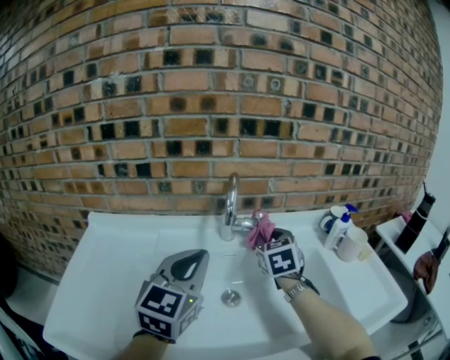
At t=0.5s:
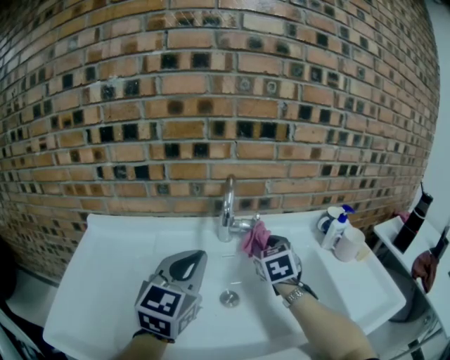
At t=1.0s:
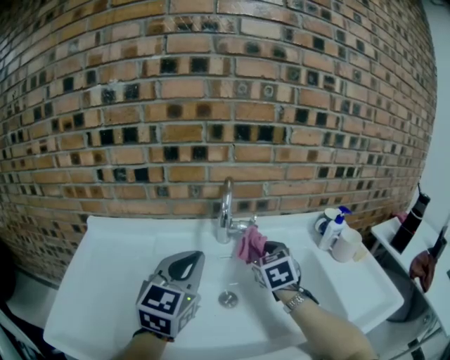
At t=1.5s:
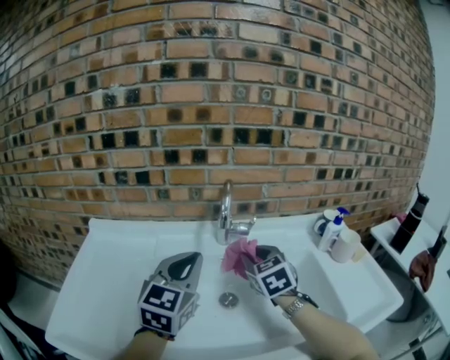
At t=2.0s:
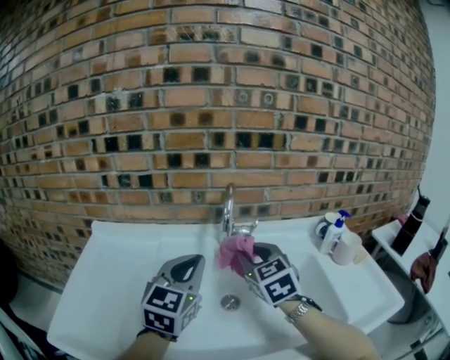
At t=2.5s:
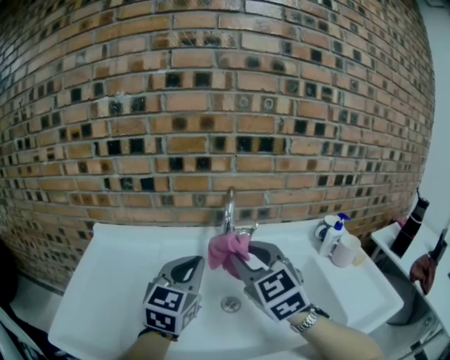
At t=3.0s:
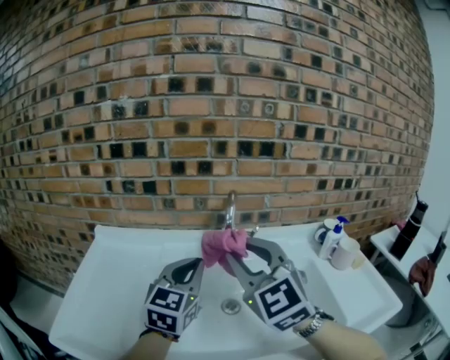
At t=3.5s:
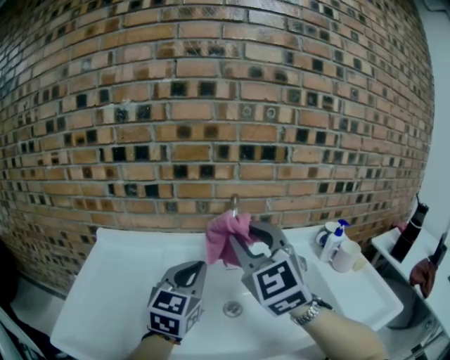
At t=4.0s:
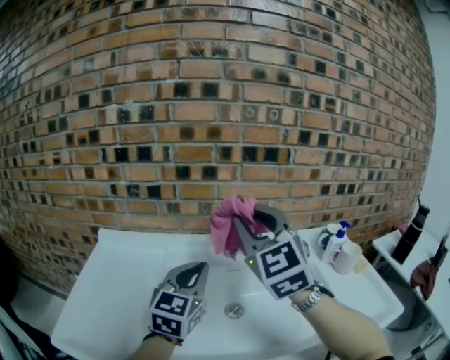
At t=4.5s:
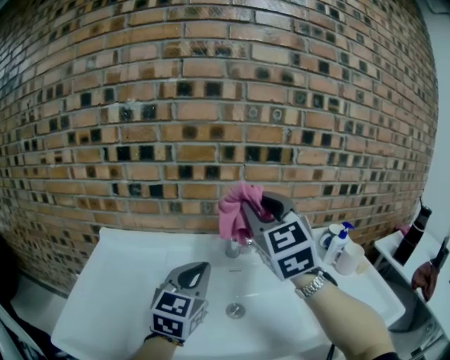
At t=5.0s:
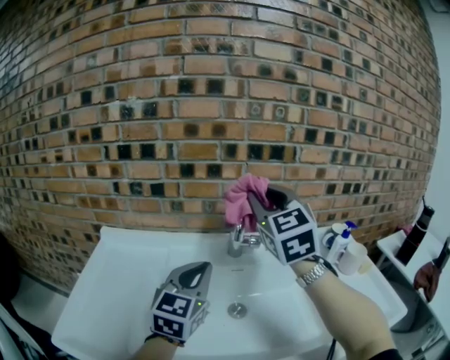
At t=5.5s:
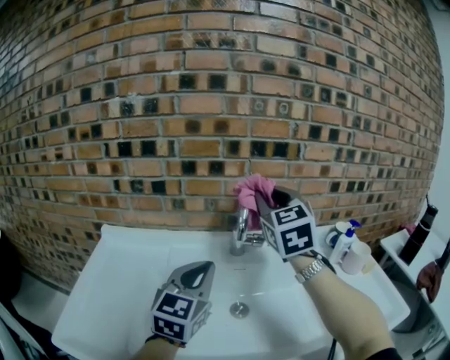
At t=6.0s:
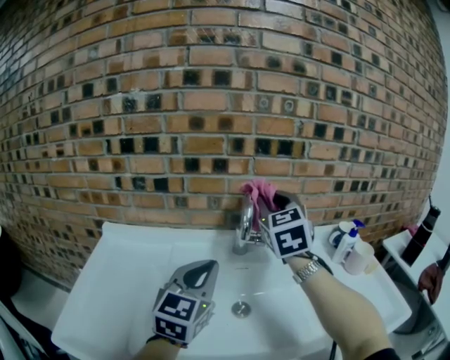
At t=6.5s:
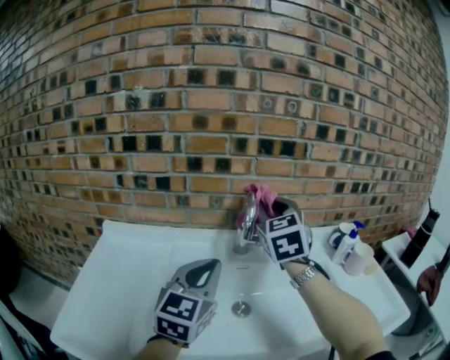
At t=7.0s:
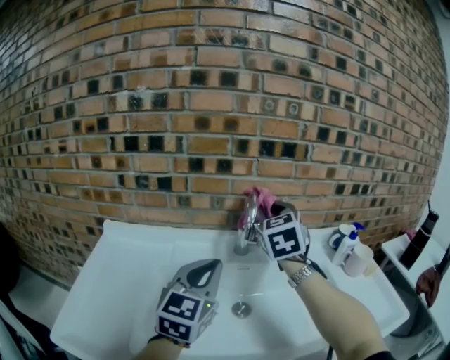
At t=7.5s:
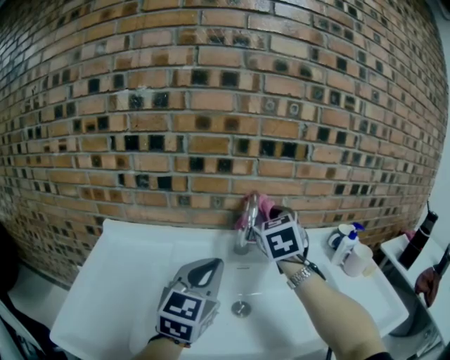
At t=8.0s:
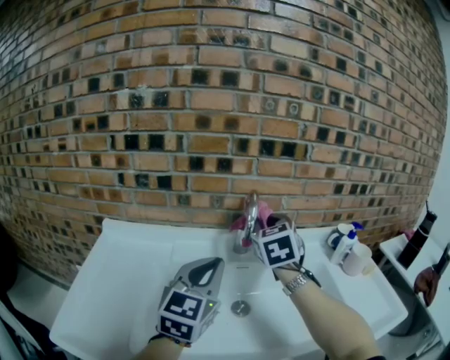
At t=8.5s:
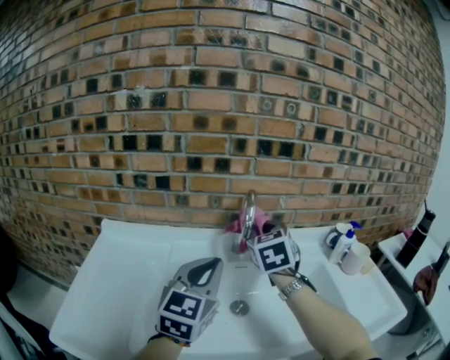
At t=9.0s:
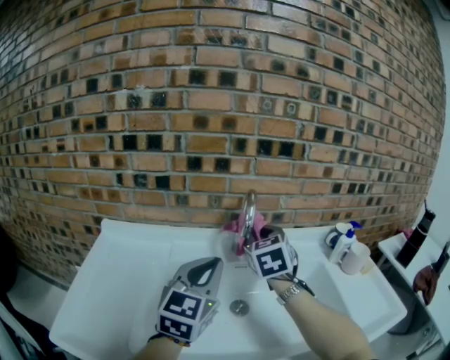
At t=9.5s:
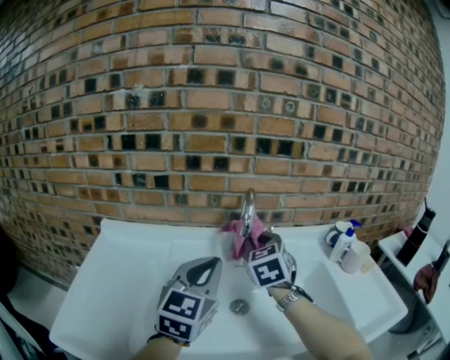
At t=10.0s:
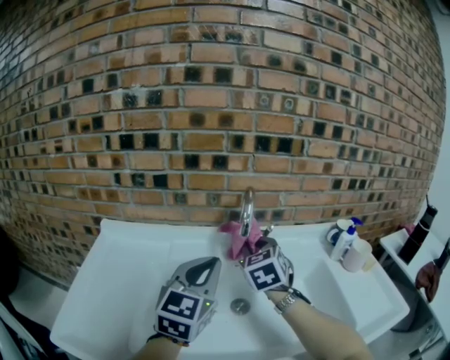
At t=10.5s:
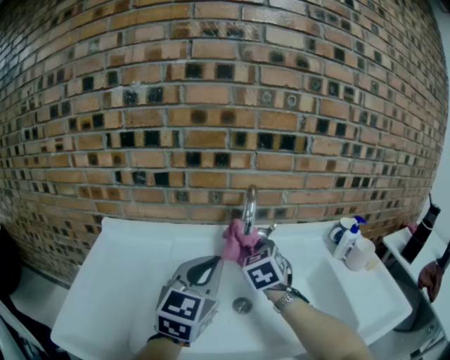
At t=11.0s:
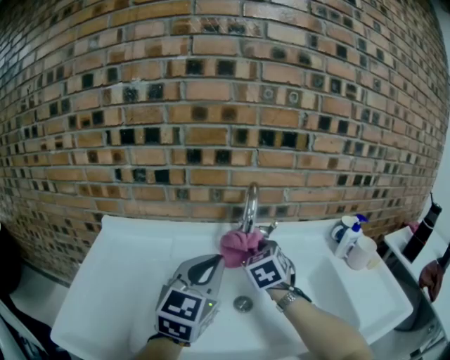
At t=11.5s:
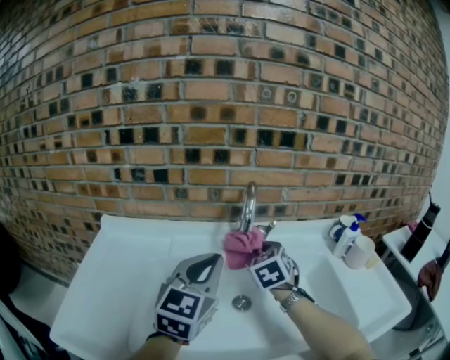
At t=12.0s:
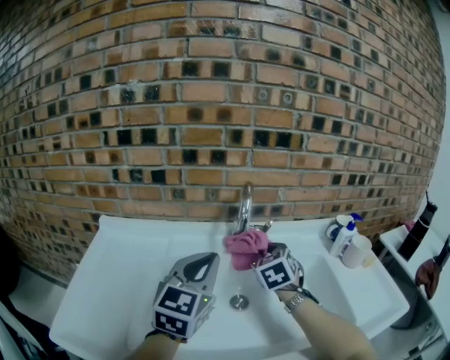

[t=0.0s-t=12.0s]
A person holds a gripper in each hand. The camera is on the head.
t=0.0s to t=2.0s: The right gripper goes some 10 cm backward and to the left.
t=2.0s to t=4.0s: The right gripper moves upward, approximately 15 cm, and changes its angle by about 30 degrees.
t=4.0s to t=6.0s: The right gripper shifts about 10 cm forward.
t=6.0s to t=8.0s: The right gripper travels downward by approximately 5 cm.
t=8.0s to t=10.0s: The right gripper is displaced downward by about 10 cm.
t=10.0s to t=12.0s: The right gripper ends up roughly 5 cm from where it was.

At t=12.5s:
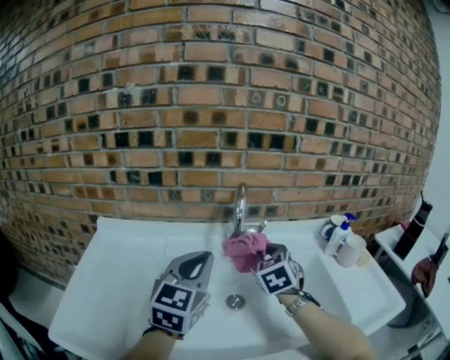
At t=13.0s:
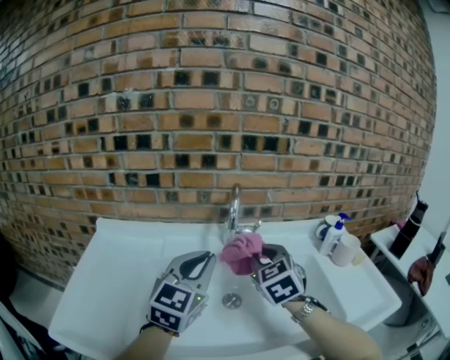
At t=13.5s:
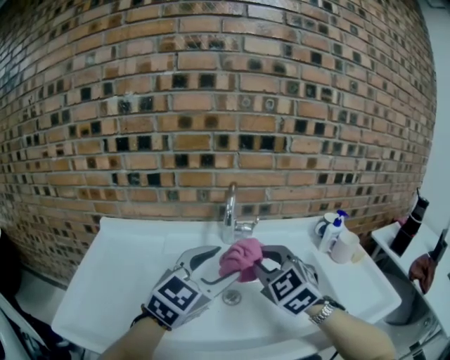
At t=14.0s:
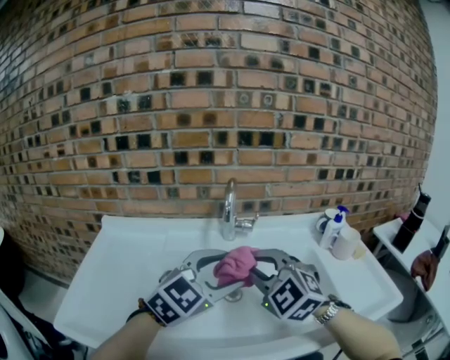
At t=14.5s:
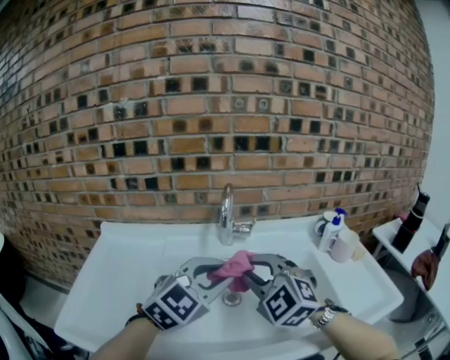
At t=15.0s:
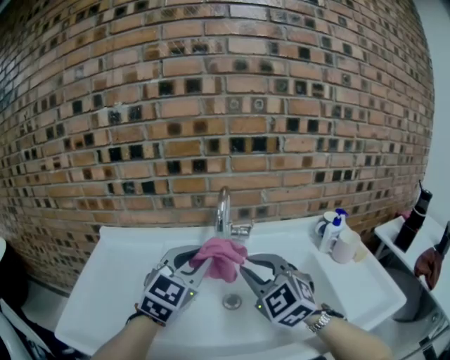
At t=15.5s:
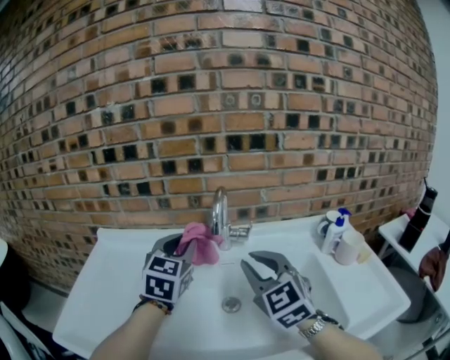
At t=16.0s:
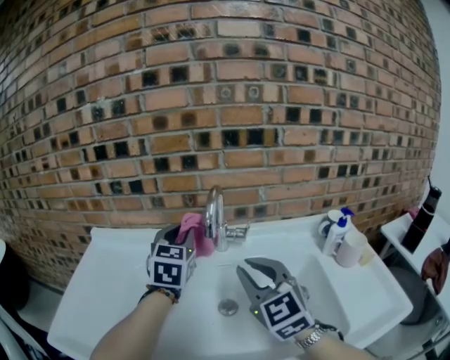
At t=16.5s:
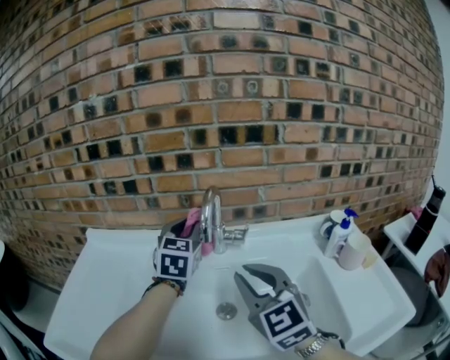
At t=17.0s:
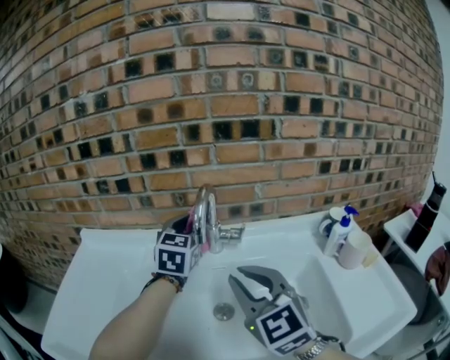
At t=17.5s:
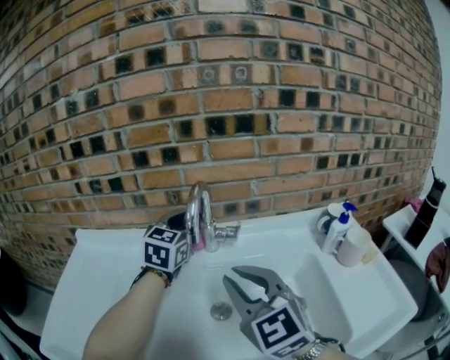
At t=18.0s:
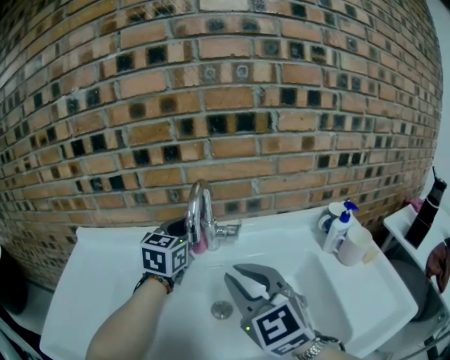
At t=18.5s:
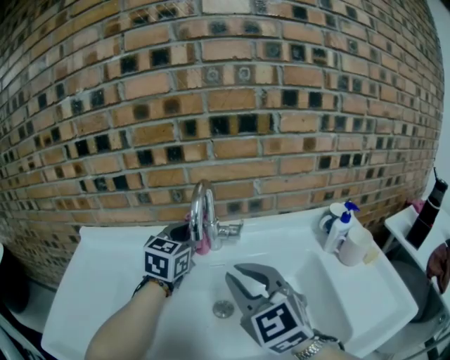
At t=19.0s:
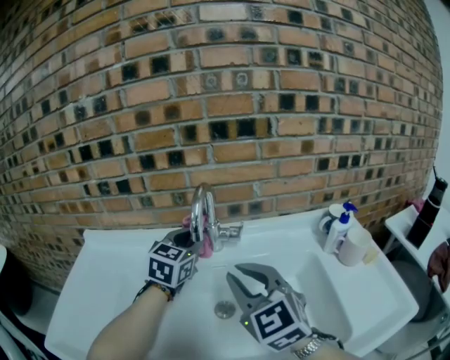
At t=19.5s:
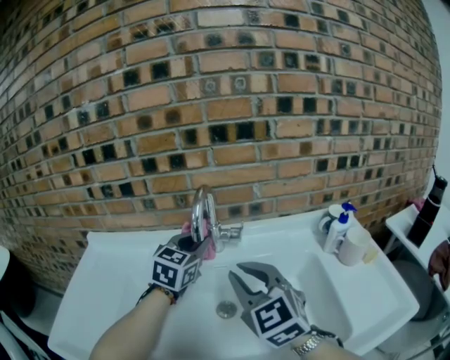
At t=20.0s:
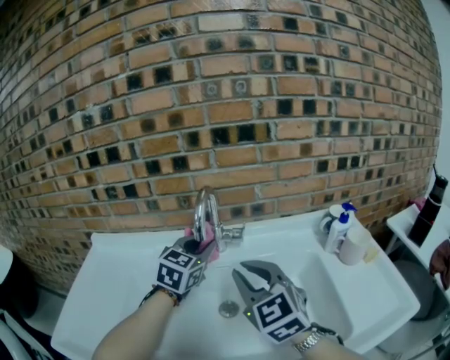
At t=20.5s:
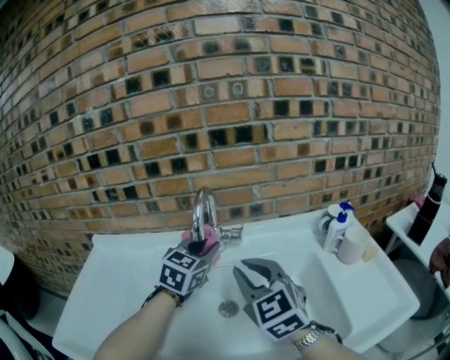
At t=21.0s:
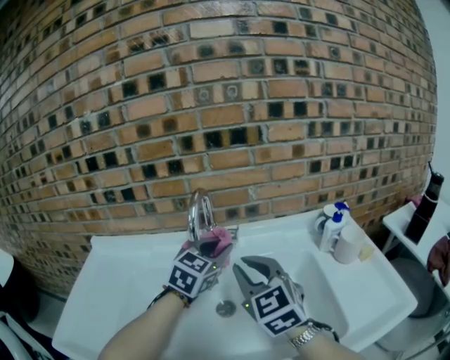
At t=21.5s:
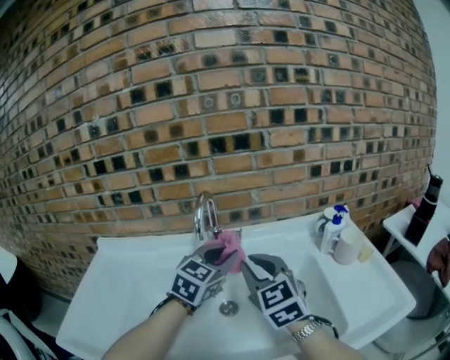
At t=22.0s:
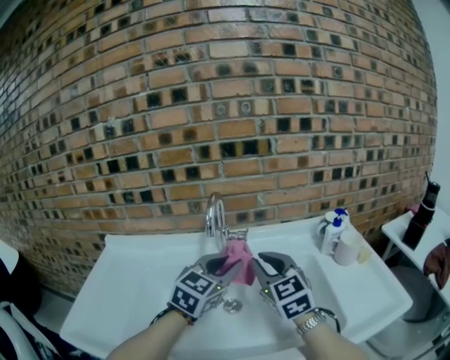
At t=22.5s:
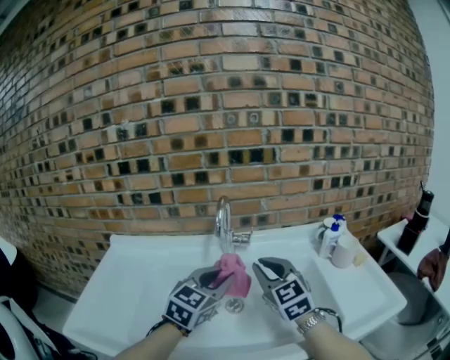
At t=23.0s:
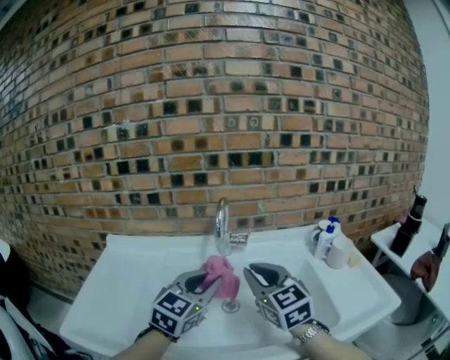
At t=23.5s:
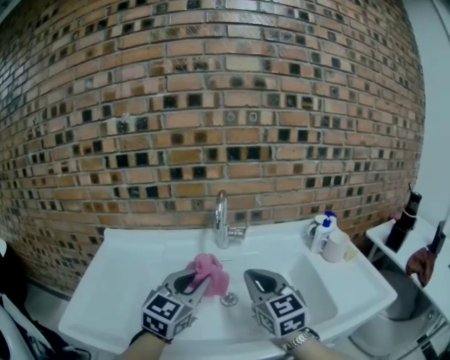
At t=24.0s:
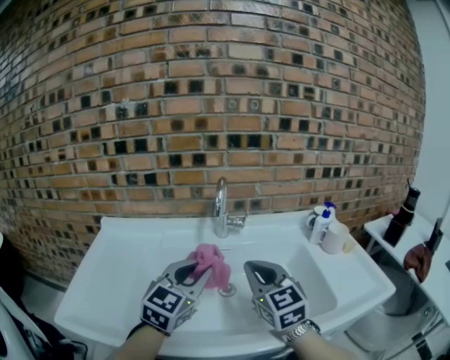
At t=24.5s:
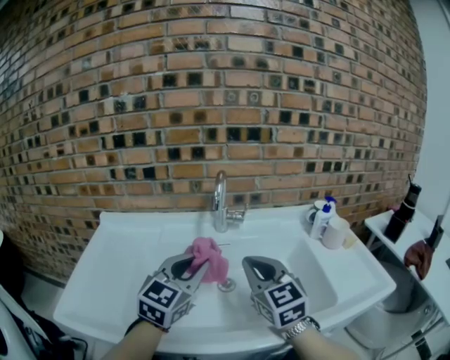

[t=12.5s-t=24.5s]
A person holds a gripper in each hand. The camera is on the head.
t=12.5s to t=14.5s: The left gripper goes roughly 10 cm to the right and backward, turns by roughly 30 degrees, and opens. The right gripper moves backward, roughly 15 cm, and changes its angle by approximately 40 degrees.
t=14.5s to t=16.5s: The right gripper moves approximately 5 cm, and rotates some 30 degrees. Meanwhile the left gripper shifts about 25 cm forward, and rotates roughly 40 degrees.
t=16.5s to t=18.5s: The grippers stay close to where they were, moving slightly.
t=18.5s to t=20.5s: The left gripper shifts by roughly 5 cm.
t=20.5s to t=22.5s: The left gripper shifts some 15 cm backward.
t=22.5s to t=24.5s: The right gripper is displaced backward by approximately 5 cm, while the left gripper travels backward and to the left by some 10 cm.

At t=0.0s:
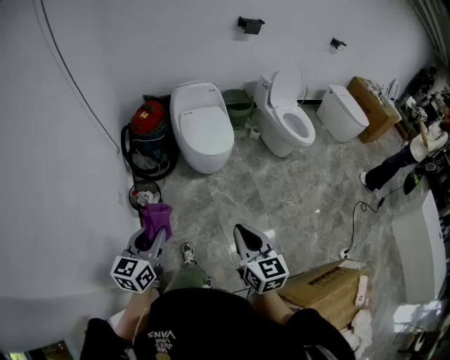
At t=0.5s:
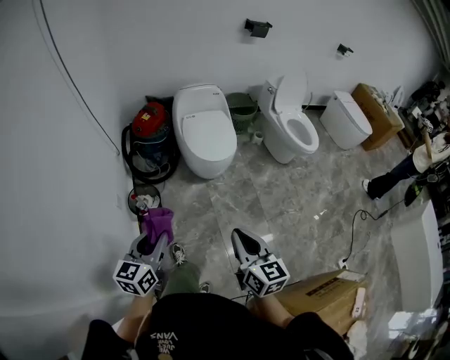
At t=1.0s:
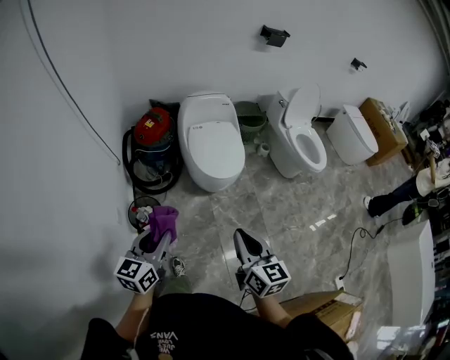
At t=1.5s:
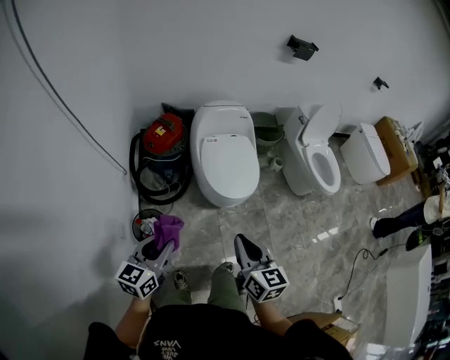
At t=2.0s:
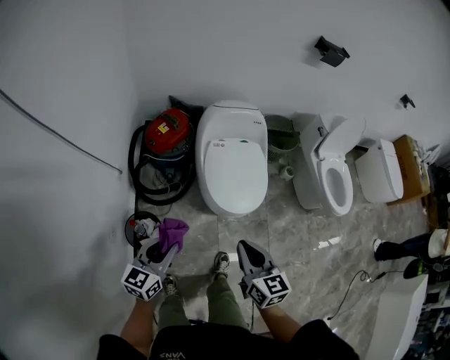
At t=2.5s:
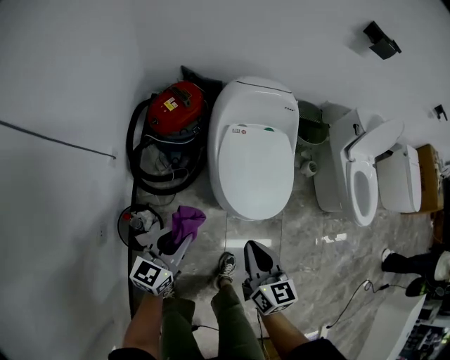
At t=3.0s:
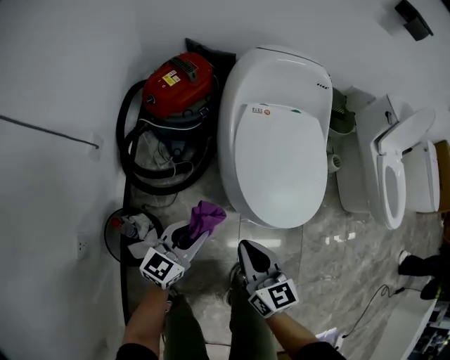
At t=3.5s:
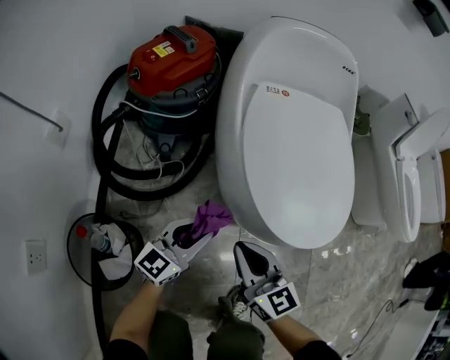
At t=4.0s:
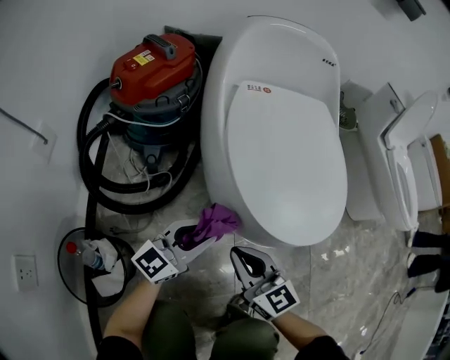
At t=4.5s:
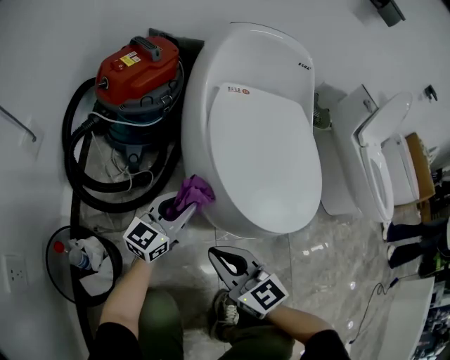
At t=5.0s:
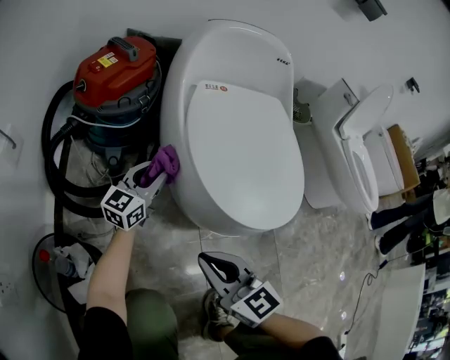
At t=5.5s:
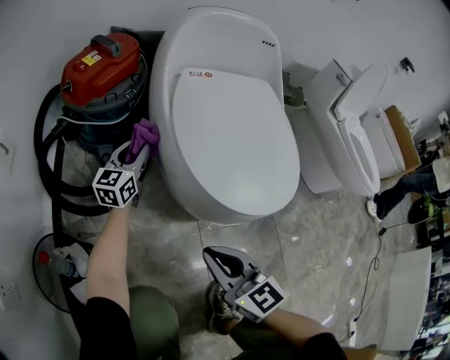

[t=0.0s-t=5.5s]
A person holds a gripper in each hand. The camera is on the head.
t=0.0s to t=2.0s: Both grippers travel together forward, about 40 cm.
t=2.0s to t=3.5s: Both grippers travel together downward, some 50 cm.
t=3.5s to t=5.5s: The left gripper is displaced forward by approximately 20 cm, while the right gripper travels backward by roughly 5 cm.
